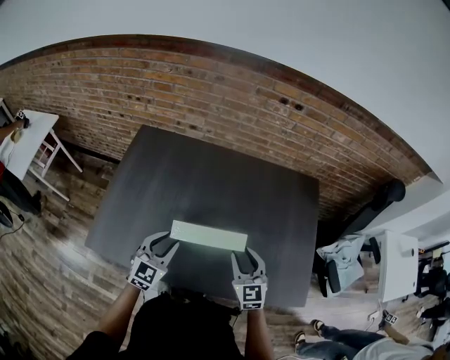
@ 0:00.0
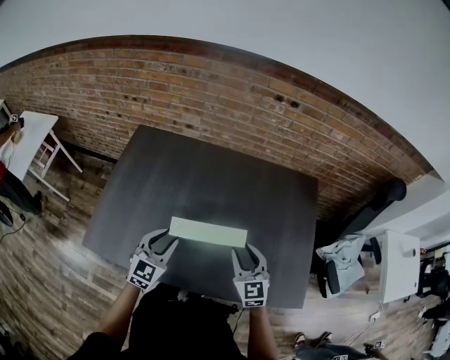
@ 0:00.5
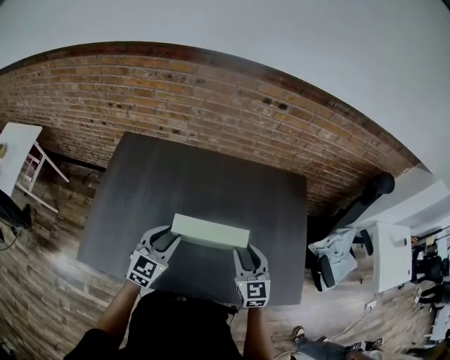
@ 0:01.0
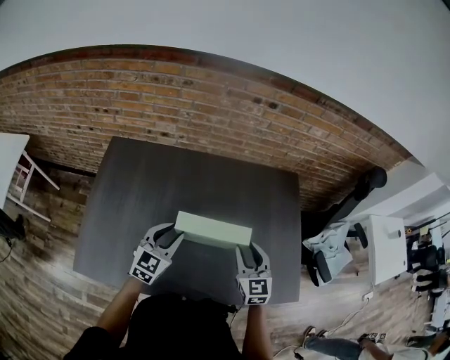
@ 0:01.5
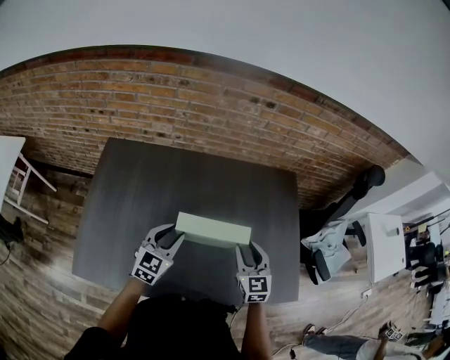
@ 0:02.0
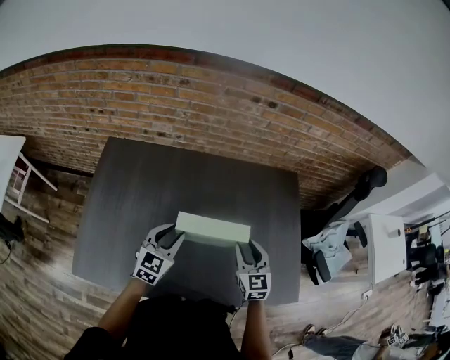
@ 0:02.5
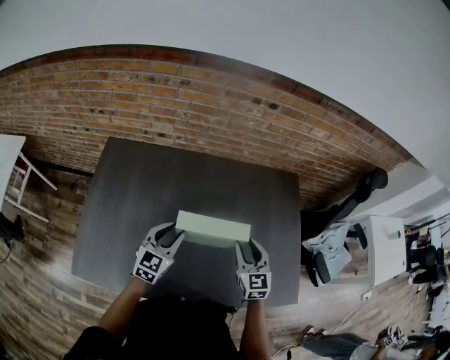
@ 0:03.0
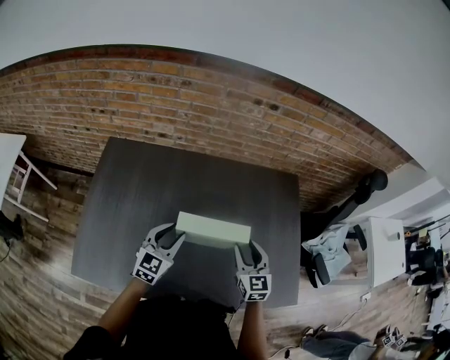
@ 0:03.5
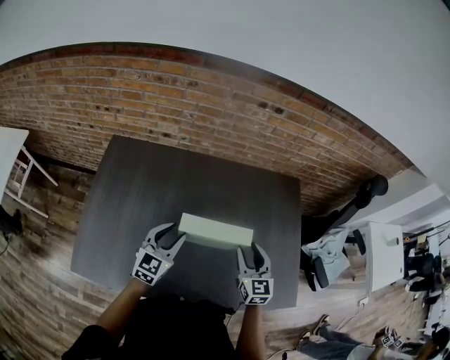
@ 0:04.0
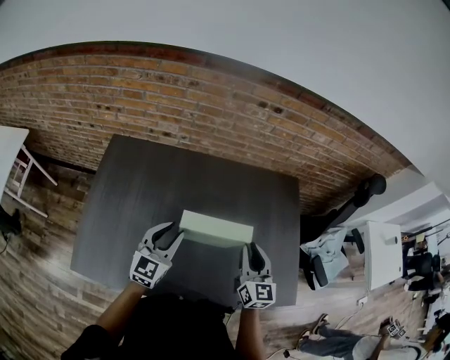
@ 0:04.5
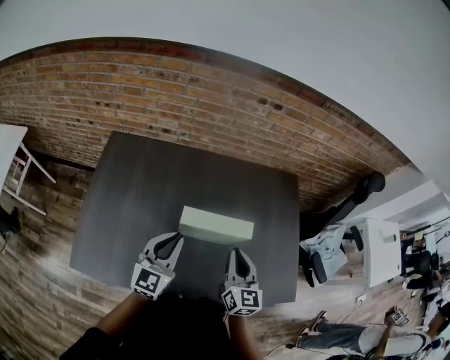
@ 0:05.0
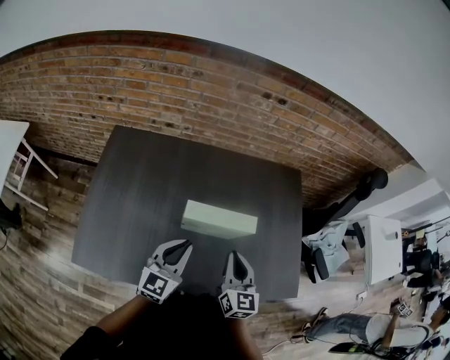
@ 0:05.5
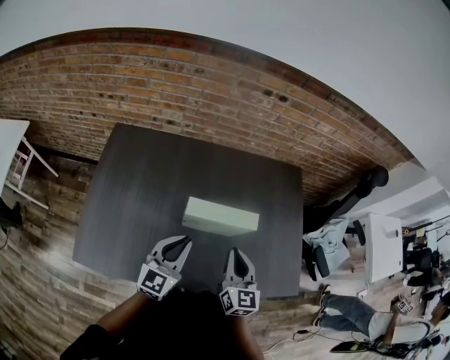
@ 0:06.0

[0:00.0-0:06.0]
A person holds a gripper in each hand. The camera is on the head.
0:00.0 to 0:02.0: Both grippers travel together forward, about 10 cm.
0:02.0 to 0:04.0: The grippers stay close to where they were, moving slightly.
0:04.0 to 0:06.0: The left gripper is displaced backward by roughly 10 cm, and closes its fingers; the right gripper moves backward and to the left, roughly 10 cm, and closes up.

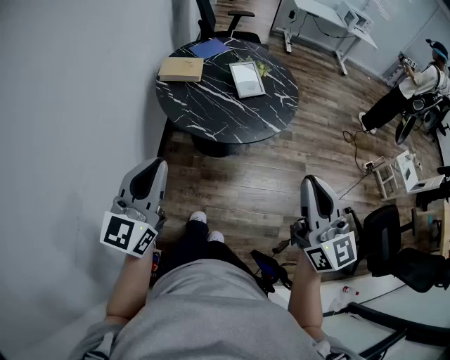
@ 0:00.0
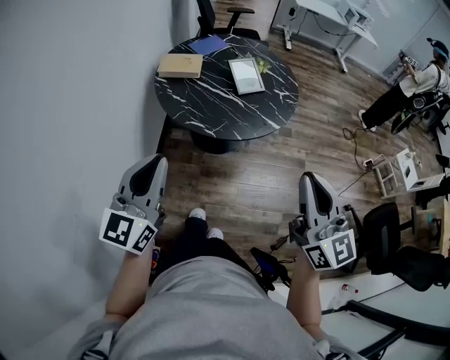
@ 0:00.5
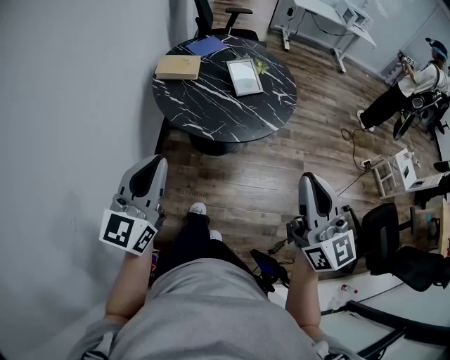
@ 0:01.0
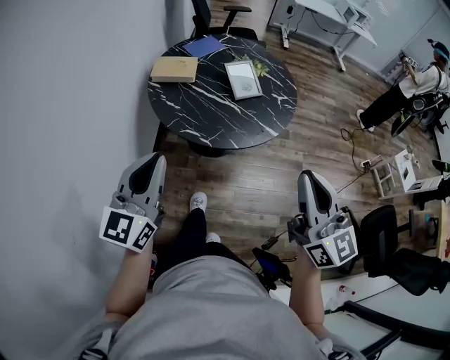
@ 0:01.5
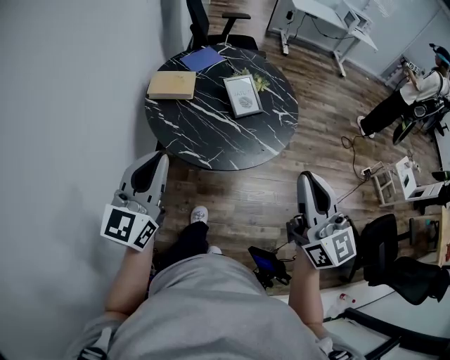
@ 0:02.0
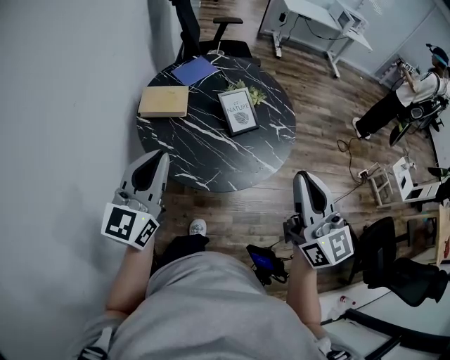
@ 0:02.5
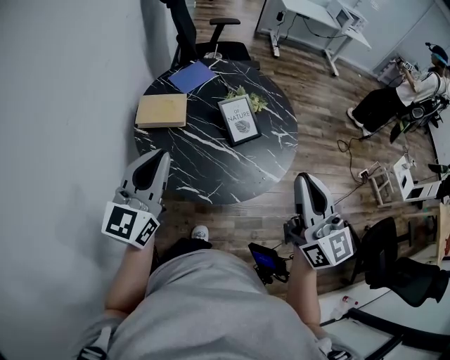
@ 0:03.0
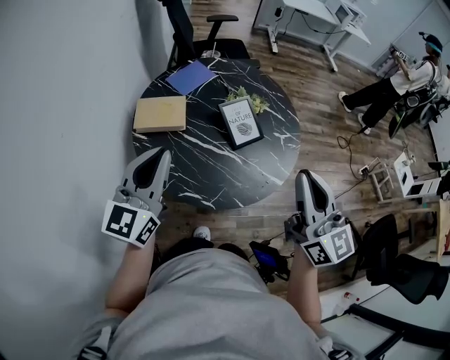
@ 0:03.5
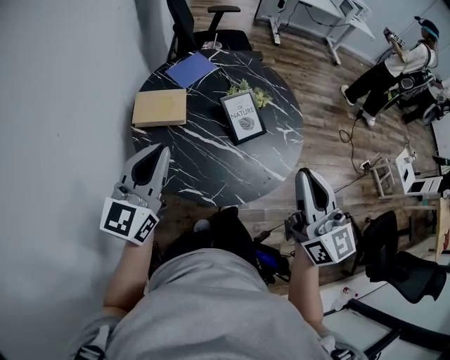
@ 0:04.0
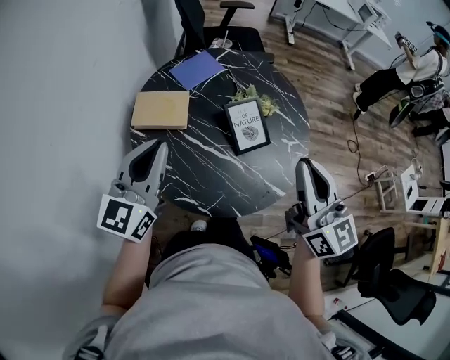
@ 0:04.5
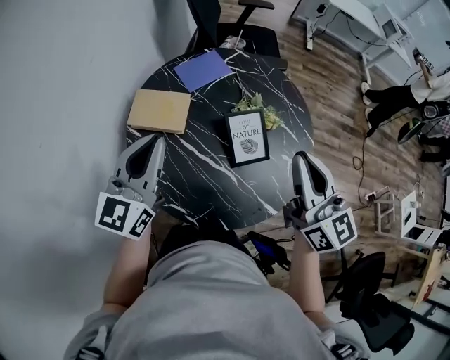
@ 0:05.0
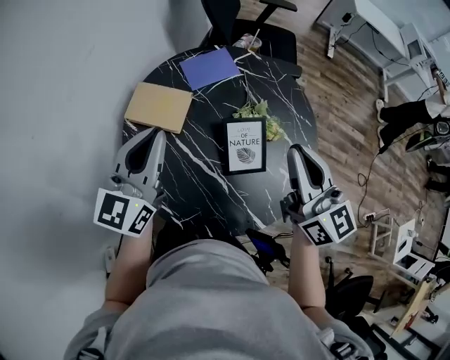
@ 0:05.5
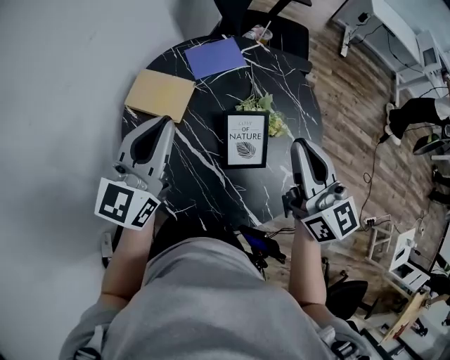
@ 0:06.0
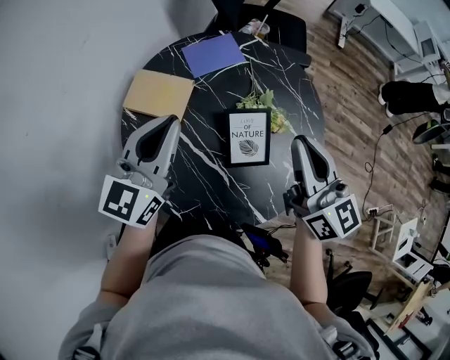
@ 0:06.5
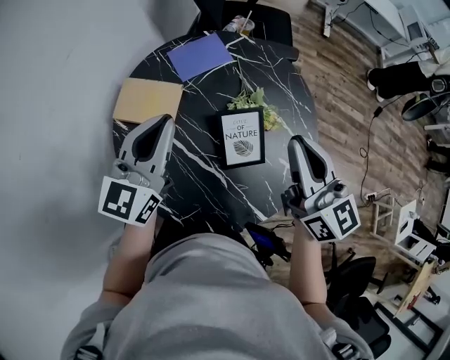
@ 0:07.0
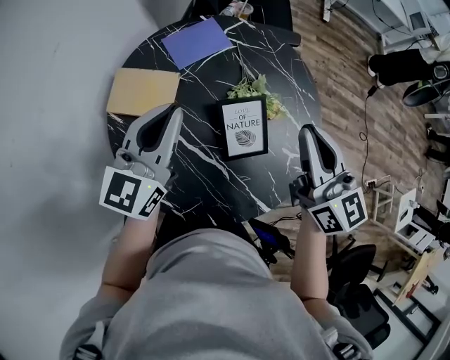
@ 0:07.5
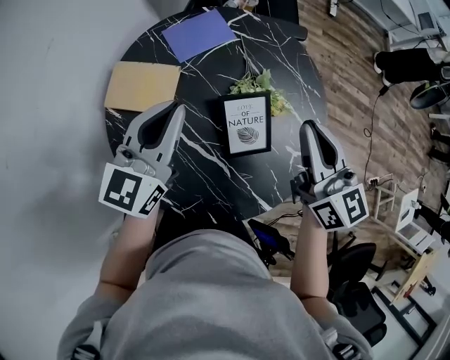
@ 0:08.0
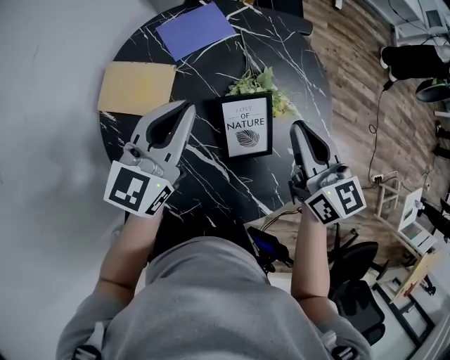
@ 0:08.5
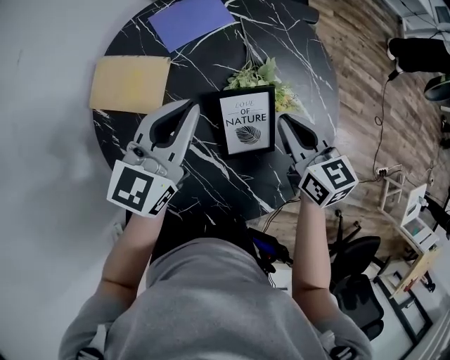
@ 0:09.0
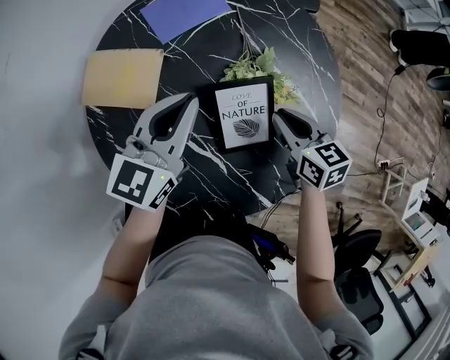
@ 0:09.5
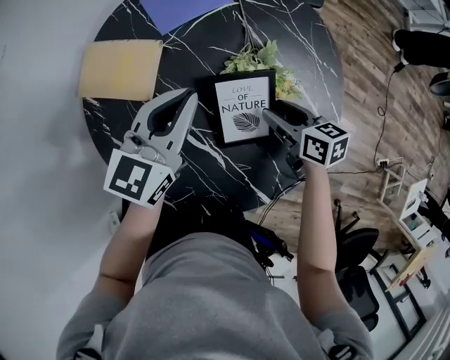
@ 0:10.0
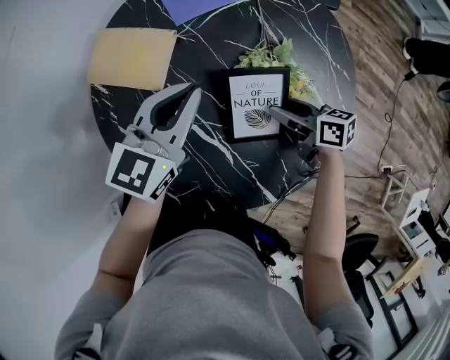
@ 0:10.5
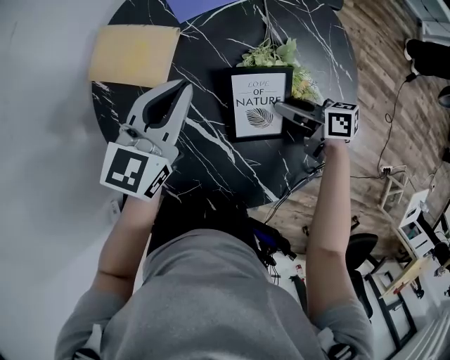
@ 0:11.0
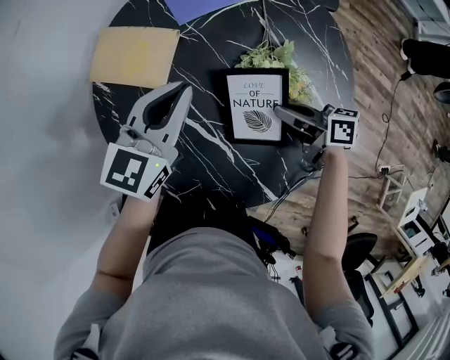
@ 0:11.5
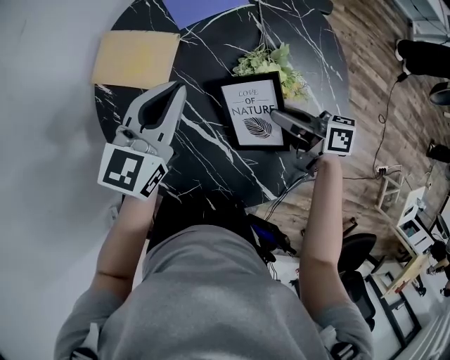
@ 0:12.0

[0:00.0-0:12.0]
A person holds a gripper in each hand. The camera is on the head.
0:00.0 to 0:02.0: Both grippers travel together forward, some 15 cm.
0:02.0 to 0:04.0: The two grippers go some 20 cm forward.
0:04.0 to 0:06.0: The right gripper is displaced forward by approximately 25 cm, and changes its angle by approximately 30 degrees; the left gripper goes about 20 cm forward and to the right, and swivels about 20 degrees.
0:06.0 to 0:08.0: The right gripper changes place by approximately 5 cm. The left gripper moves downward and forward, roughly 10 cm.
0:08.0 to 0:10.0: The left gripper moves downward and to the right, some 10 cm. The right gripper moves downward, some 25 cm, swivels about 40 degrees, and opens.
0:10.0 to 0:12.0: The right gripper heads upward, covering roughly 5 cm, changes its angle by approximately 30 degrees, and closes up. The left gripper shifts roughly 5 cm to the left.

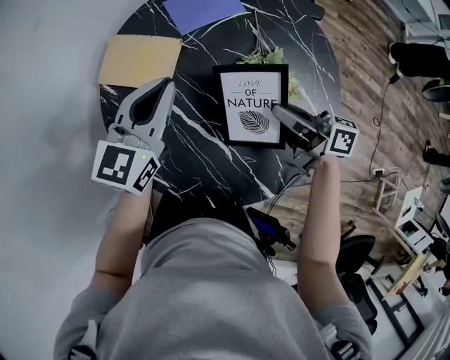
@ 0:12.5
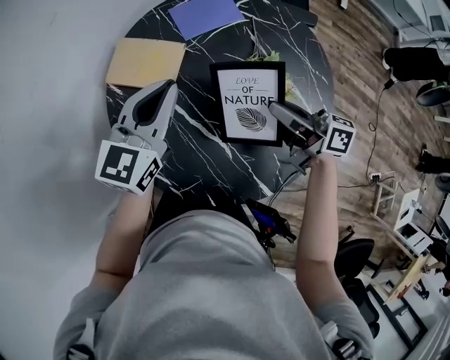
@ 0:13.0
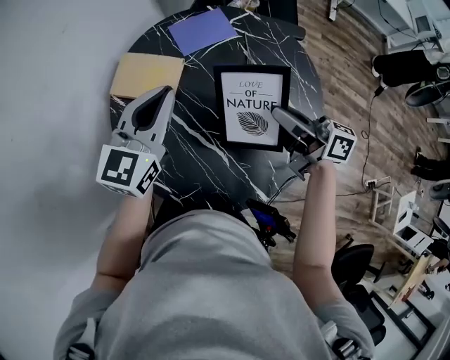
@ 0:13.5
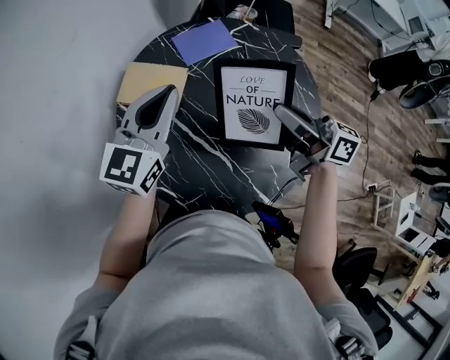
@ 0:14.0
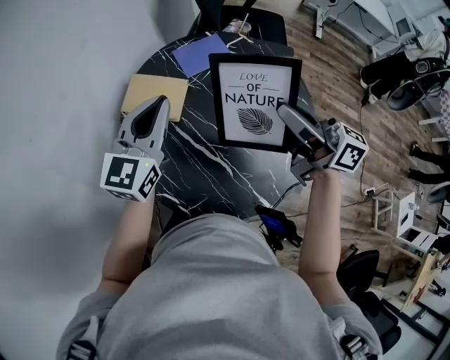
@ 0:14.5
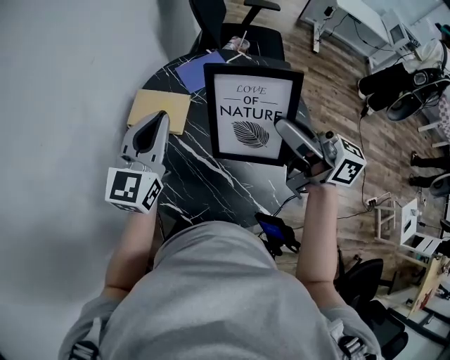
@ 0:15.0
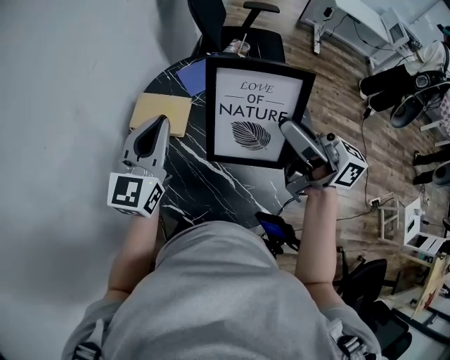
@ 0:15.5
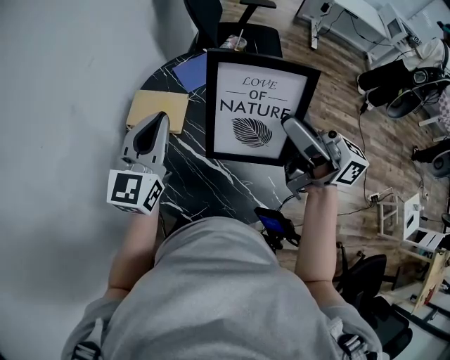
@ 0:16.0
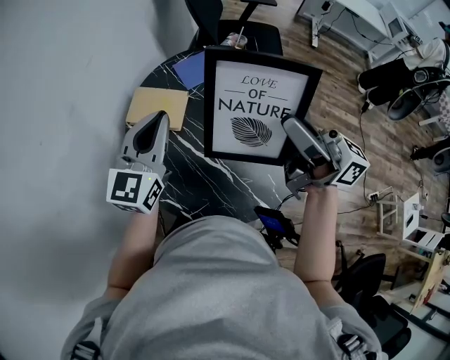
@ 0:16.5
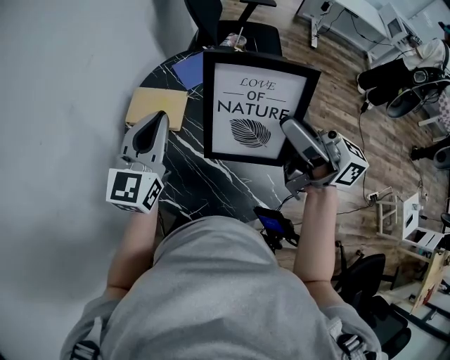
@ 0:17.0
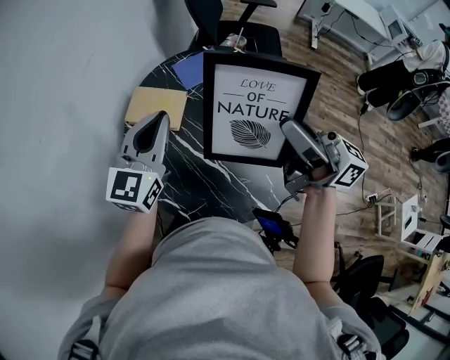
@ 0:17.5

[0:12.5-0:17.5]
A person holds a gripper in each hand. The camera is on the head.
0:12.5 to 0:15.0: The left gripper is displaced upward and to the left by roughly 15 cm. The right gripper heads upward, covering some 25 cm, and swivels roughly 30 degrees.
0:15.0 to 0:17.5: The grippers stay close to where they were, moving slightly.

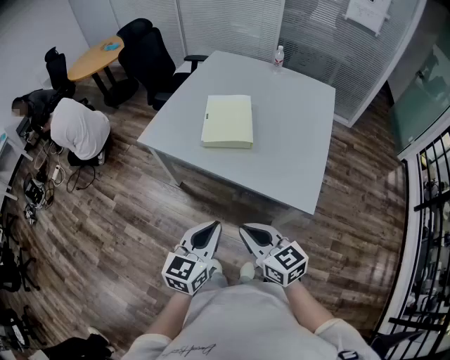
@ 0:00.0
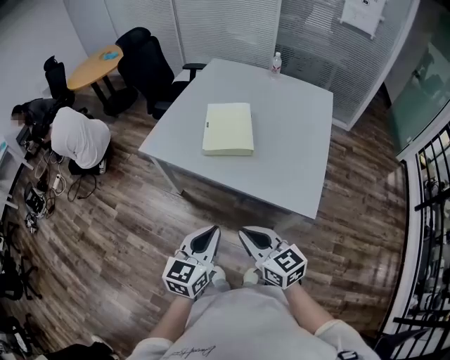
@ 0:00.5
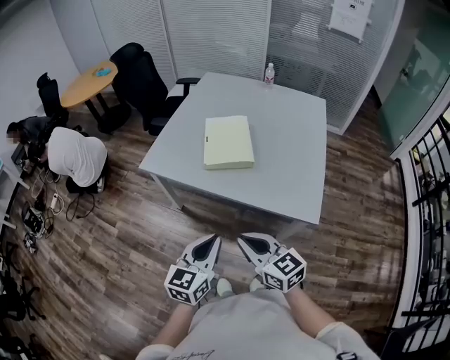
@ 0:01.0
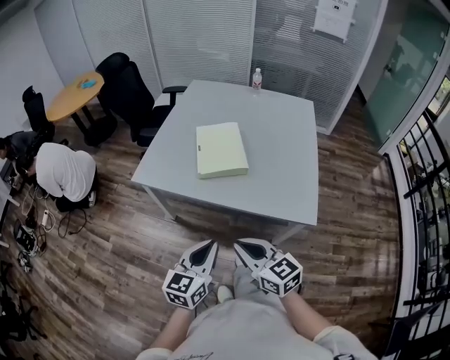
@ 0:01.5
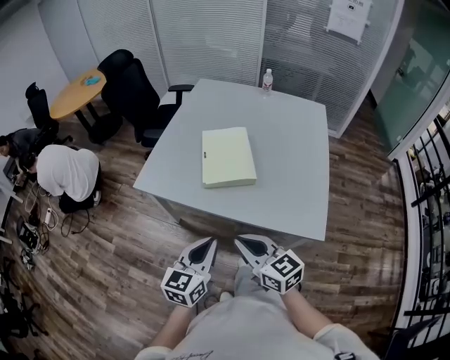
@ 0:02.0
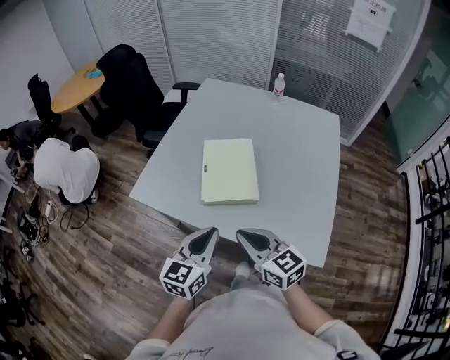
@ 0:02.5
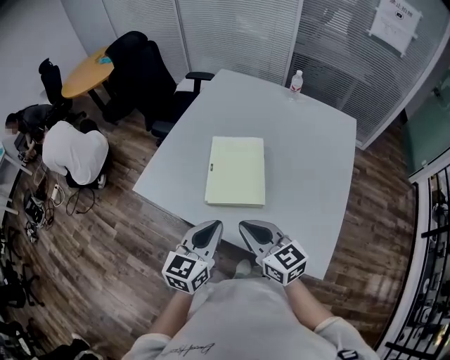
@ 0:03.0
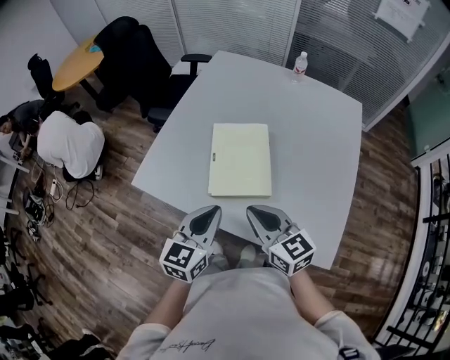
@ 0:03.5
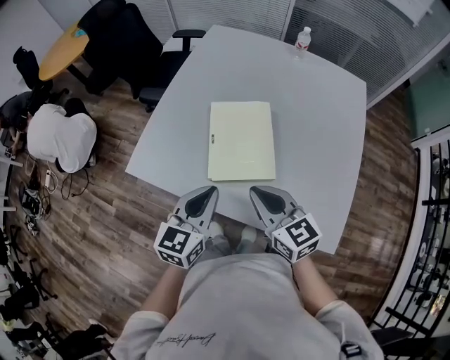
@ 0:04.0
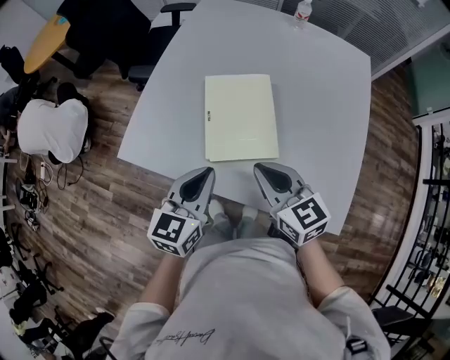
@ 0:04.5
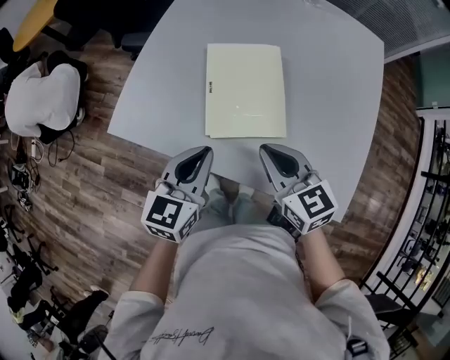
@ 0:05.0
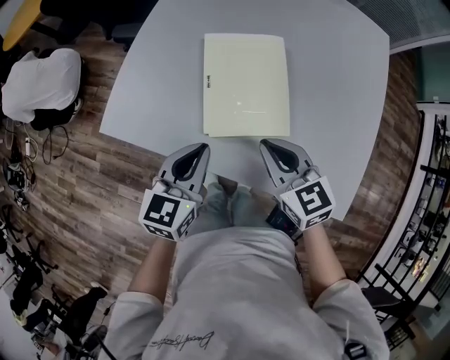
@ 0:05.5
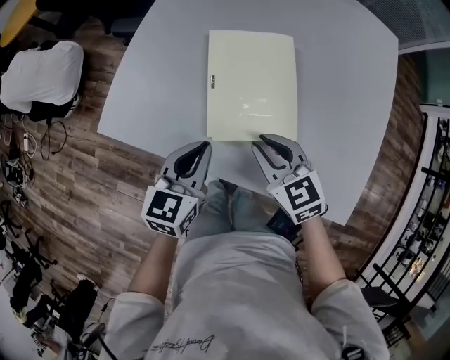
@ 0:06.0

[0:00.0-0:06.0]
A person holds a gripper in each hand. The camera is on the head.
0:00.0 to 0:02.0: Both grippers move forward and to the left, some 10 cm.
0:02.0 to 0:04.0: The two grippers go some 20 cm forward.
0:04.0 to 0:06.0: The grippers both shift downward by about 10 cm.
